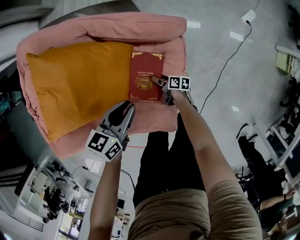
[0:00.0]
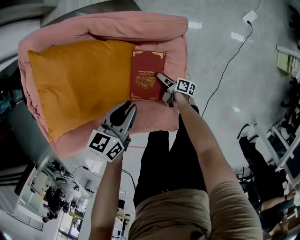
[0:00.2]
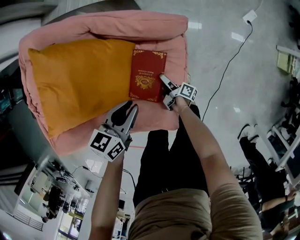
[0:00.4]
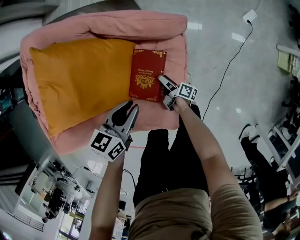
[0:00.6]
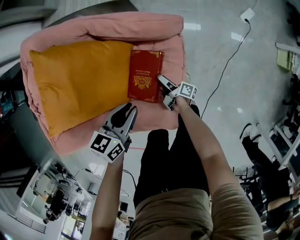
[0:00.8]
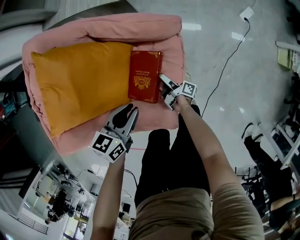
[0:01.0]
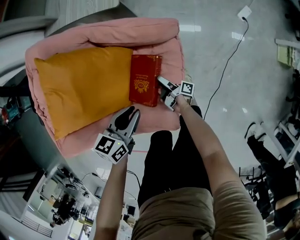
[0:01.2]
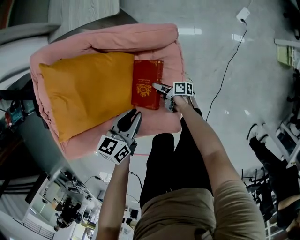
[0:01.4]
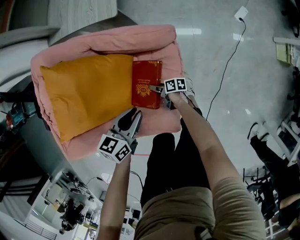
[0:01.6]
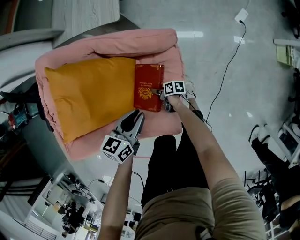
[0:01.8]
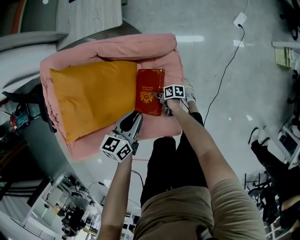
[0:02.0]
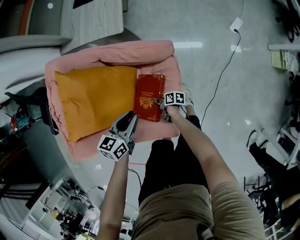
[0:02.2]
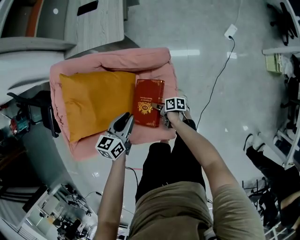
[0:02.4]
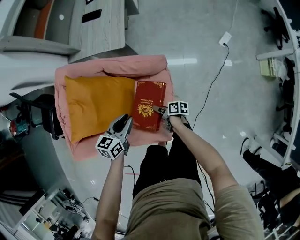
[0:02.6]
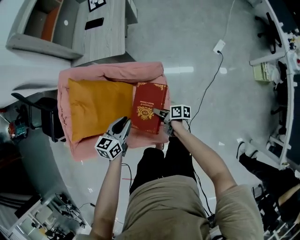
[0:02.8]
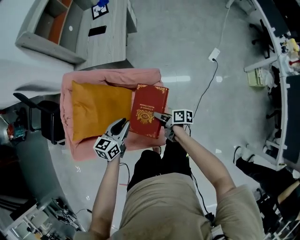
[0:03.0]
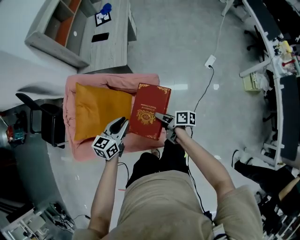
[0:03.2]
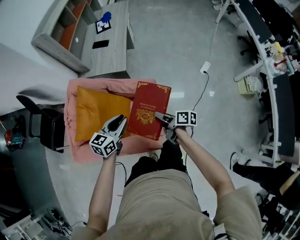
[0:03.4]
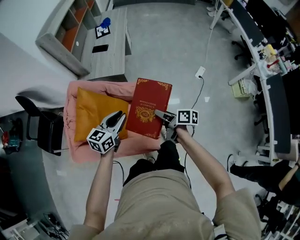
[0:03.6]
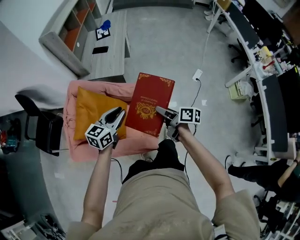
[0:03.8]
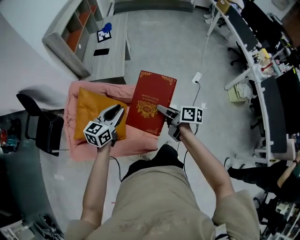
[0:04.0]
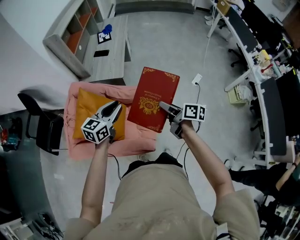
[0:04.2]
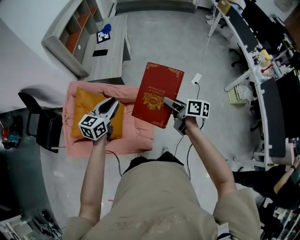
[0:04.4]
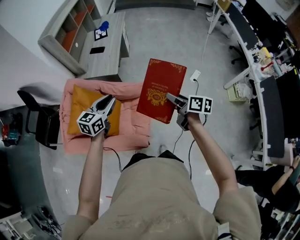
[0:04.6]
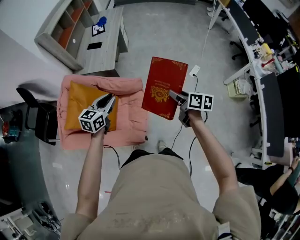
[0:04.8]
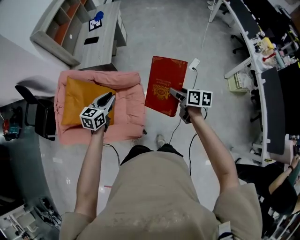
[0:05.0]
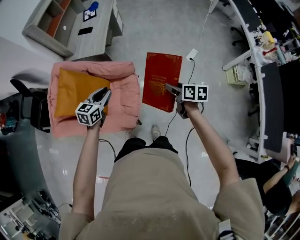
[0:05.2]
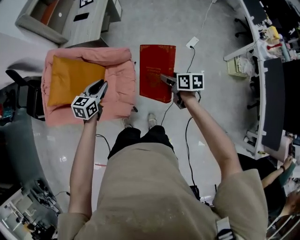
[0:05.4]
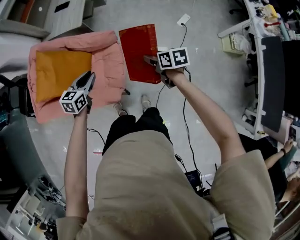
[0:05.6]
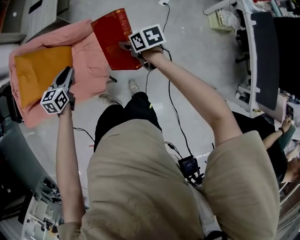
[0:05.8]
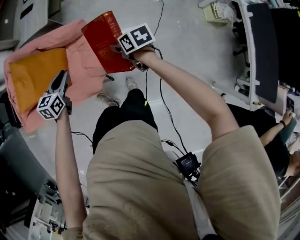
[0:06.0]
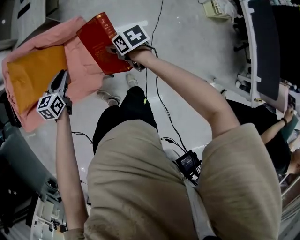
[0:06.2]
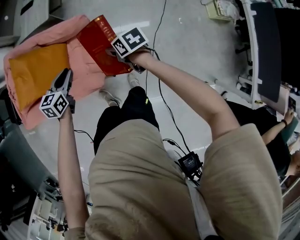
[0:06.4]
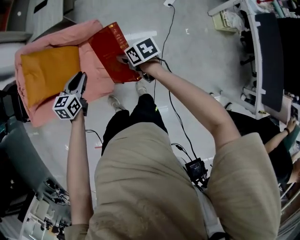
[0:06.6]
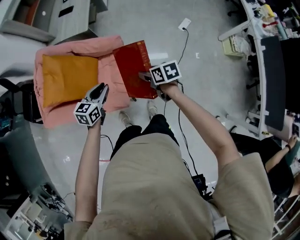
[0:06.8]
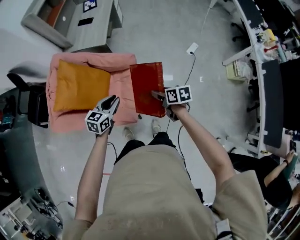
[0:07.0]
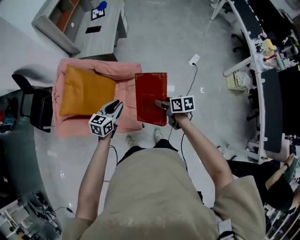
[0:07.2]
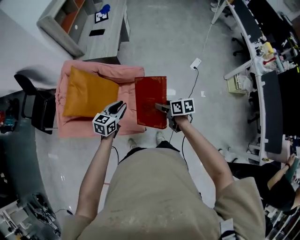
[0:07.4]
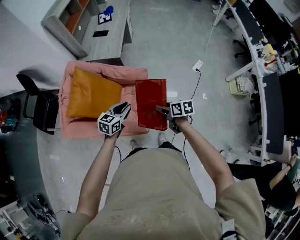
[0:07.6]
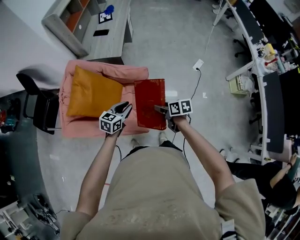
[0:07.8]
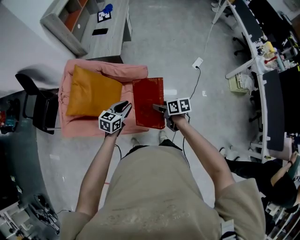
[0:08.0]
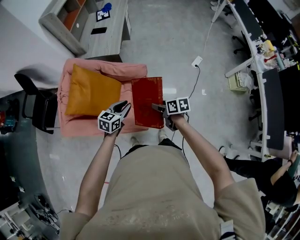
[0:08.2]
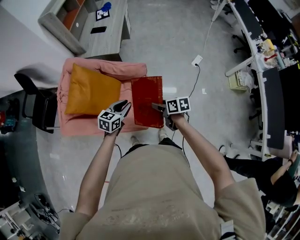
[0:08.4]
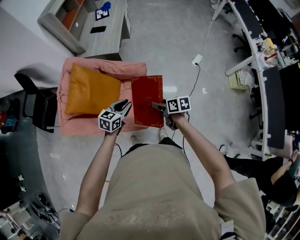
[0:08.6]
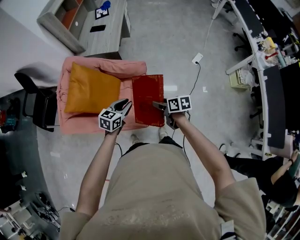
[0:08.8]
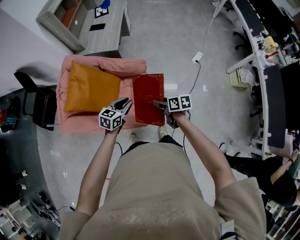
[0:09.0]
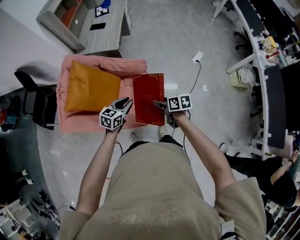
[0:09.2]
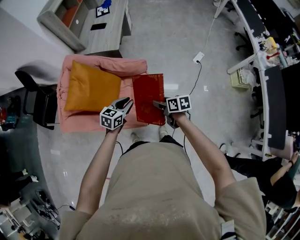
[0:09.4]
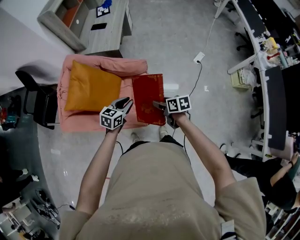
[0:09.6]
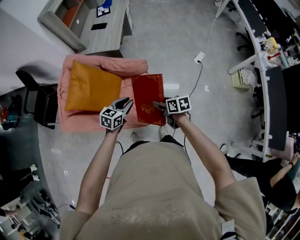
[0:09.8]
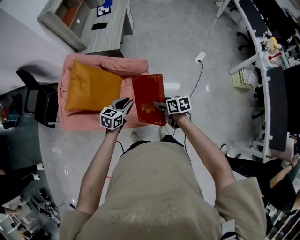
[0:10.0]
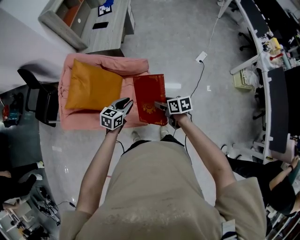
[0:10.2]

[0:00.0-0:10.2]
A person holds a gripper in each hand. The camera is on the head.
0:00.0 to 0:01.4: The right gripper heads upward, covering approximately 5 cm.
0:01.4 to 0:03.0: The left gripper is displaced upward by about 15 cm. Meanwhile the right gripper shifts about 30 cm upward.
0:03.0 to 0:04.4: The two grippers go approximately 25 cm upward. The right gripper turns by approximately 30 degrees.
0:04.4 to 0:05.8: Both grippers move downward and to the right, approximately 25 cm. The right gripper swivels some 40 degrees. Meanwhile the left gripper turns by about 20 degrees.
0:05.8 to 0:07.2: The right gripper moves to the left, about 10 cm; the left gripper travels to the left and upward by some 10 cm.
0:07.2 to 0:08.8: The right gripper moves to the left, roughly 5 cm.
0:08.8 to 0:10.2: The grippers make only small movements.

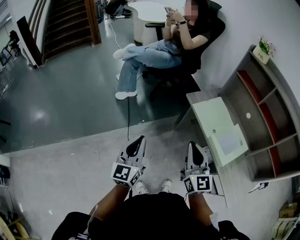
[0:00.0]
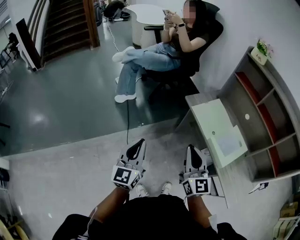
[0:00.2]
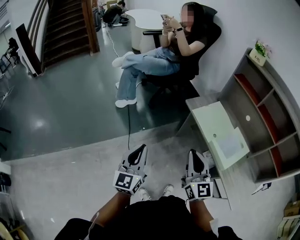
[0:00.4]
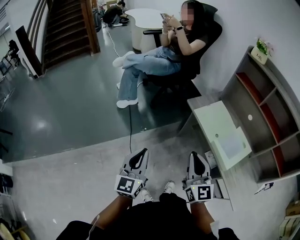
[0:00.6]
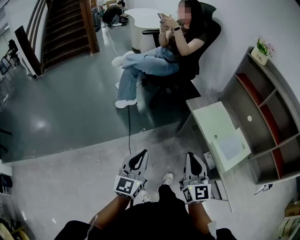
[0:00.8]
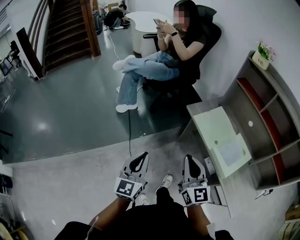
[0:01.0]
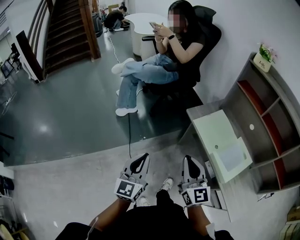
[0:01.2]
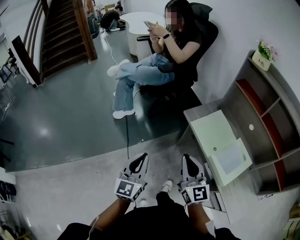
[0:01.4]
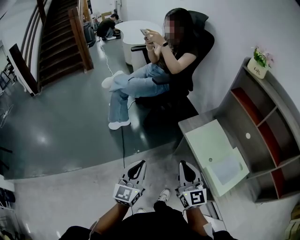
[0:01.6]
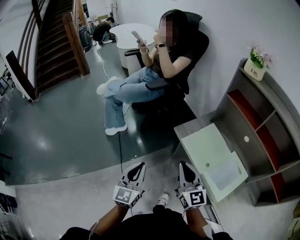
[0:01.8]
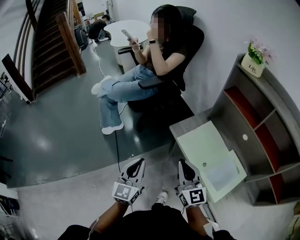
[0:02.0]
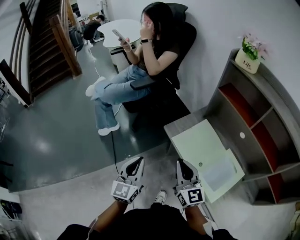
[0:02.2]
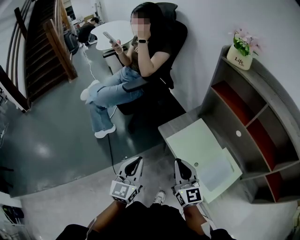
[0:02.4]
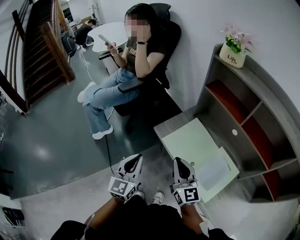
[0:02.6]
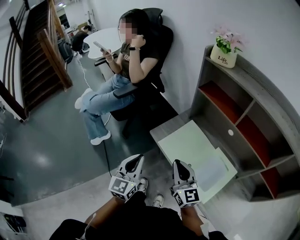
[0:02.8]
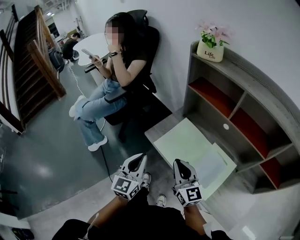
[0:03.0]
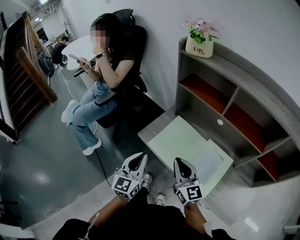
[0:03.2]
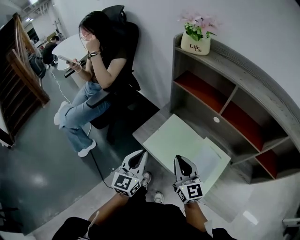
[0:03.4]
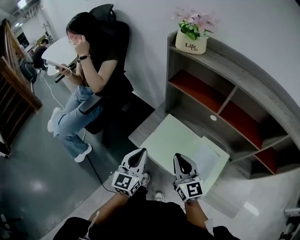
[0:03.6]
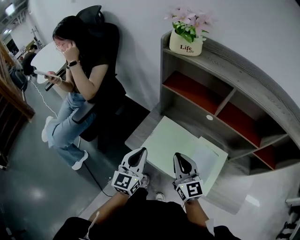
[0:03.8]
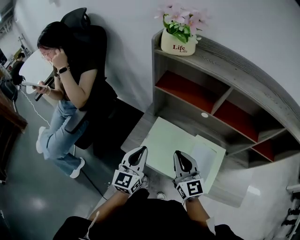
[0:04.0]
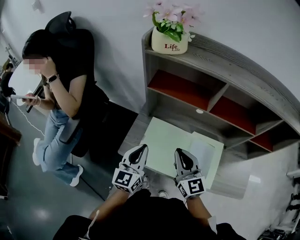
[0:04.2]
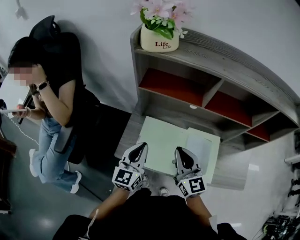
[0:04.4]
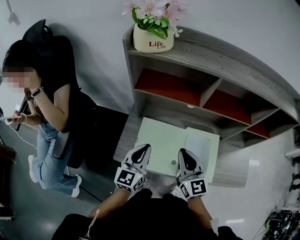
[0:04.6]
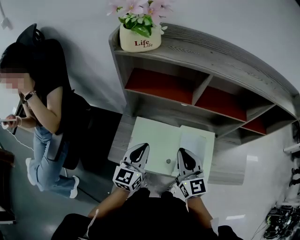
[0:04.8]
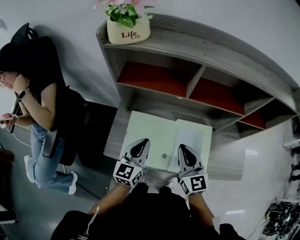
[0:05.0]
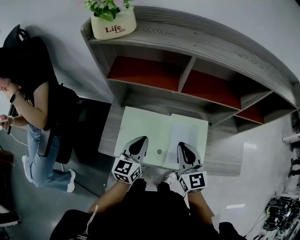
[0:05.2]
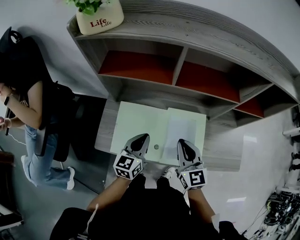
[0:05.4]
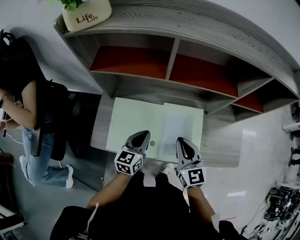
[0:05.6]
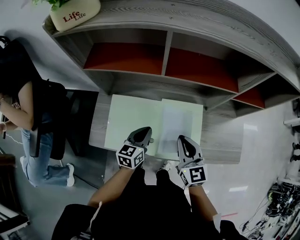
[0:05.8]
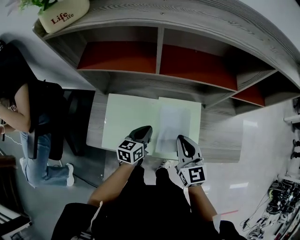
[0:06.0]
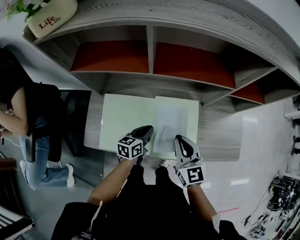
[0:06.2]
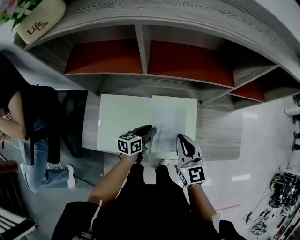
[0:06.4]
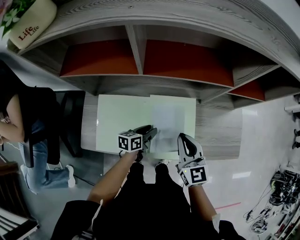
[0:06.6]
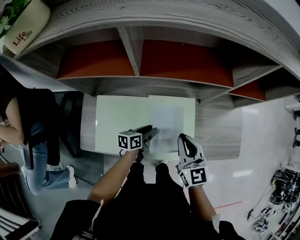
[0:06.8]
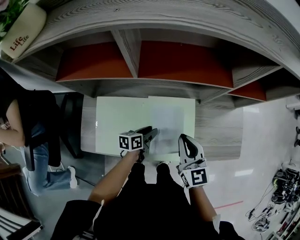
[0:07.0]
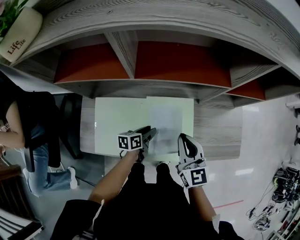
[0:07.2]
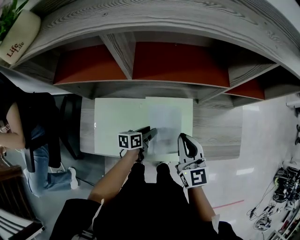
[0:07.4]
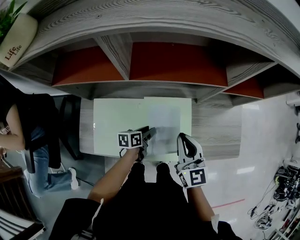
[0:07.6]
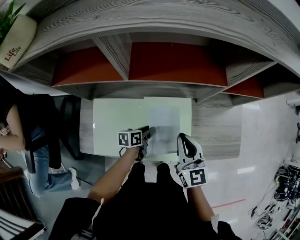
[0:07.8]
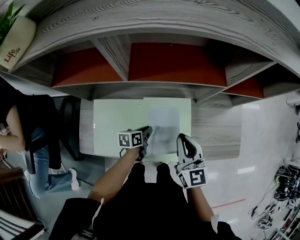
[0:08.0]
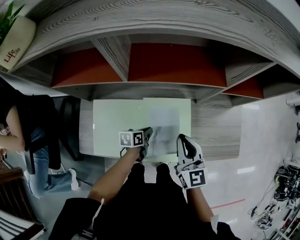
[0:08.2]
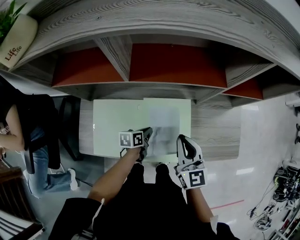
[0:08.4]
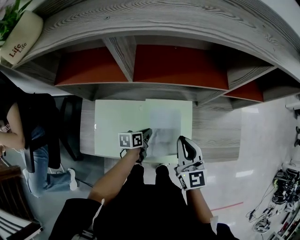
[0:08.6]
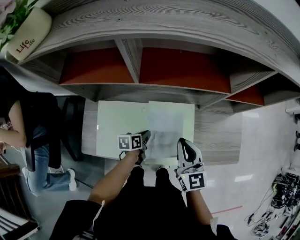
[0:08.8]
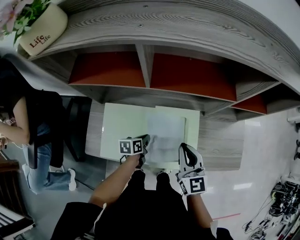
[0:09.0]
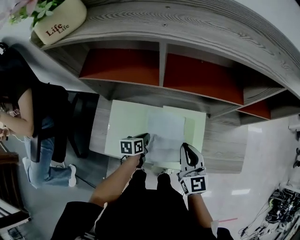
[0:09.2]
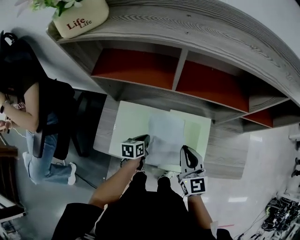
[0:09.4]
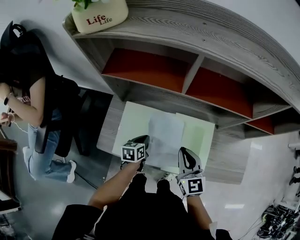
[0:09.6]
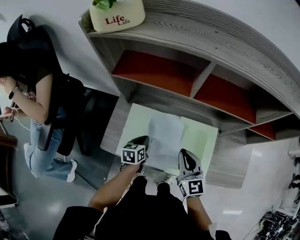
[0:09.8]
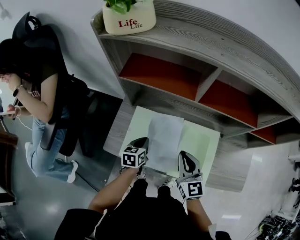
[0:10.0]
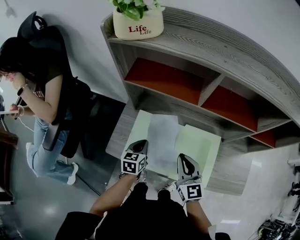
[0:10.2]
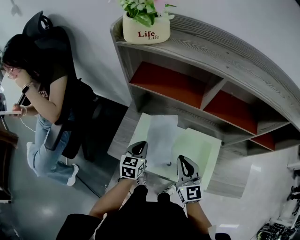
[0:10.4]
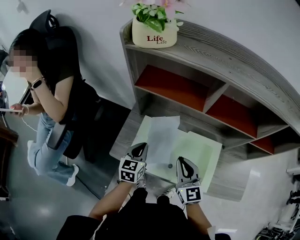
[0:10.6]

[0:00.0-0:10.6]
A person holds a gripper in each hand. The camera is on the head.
0:00.0 to 0:01.6: The right gripper goes roughly 15 cm forward. Meanwhile the left gripper heads forward and to the right, covering roughly 15 cm.
0:01.6 to 0:03.0: The grippers both shift to the right and forward by roughly 25 cm.
0:03.0 to 0:04.6: The right gripper moves roughly 15 cm, and changes its angle by approximately 40 degrees; the left gripper shifts by approximately 25 cm, and changes its angle by some 40 degrees.
0:04.6 to 0:06.0: The right gripper is displaced to the right and downward by approximately 20 cm. Meanwhile the left gripper goes roughly 25 cm downward and to the right, and changes its angle by some 30 degrees.
0:06.0 to 0:07.6: The left gripper goes approximately 10 cm downward and to the right, changes its angle by approximately 30 degrees, and opens. The right gripper goes some 5 cm to the right.
0:07.6 to 0:09.0: The left gripper moves to the left, roughly 5 cm, and closes its fingers.
0:09.0 to 0:10.6: The left gripper is displaced upward by approximately 20 cm, and swivels about 40 degrees. The right gripper moves approximately 15 cm.

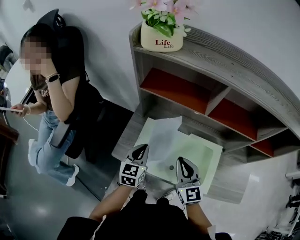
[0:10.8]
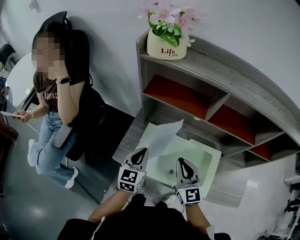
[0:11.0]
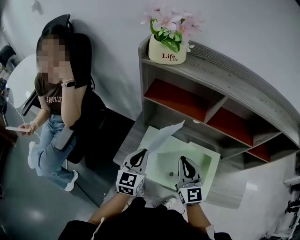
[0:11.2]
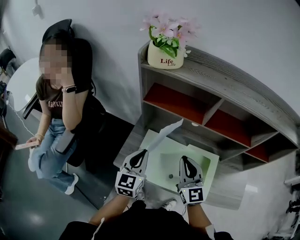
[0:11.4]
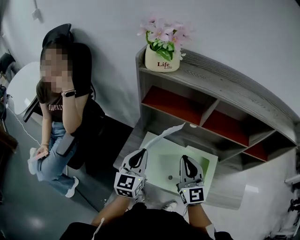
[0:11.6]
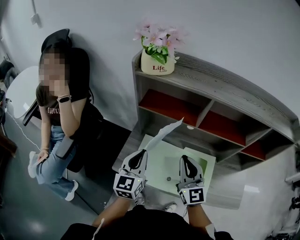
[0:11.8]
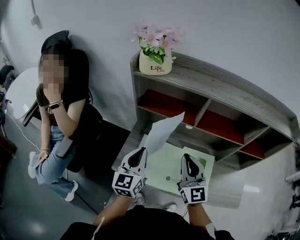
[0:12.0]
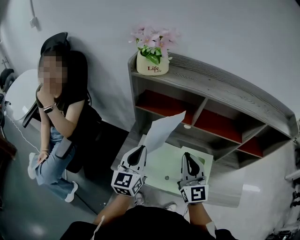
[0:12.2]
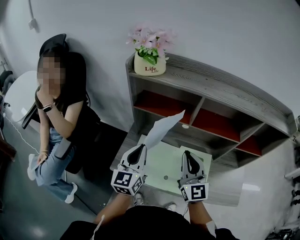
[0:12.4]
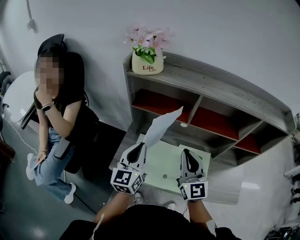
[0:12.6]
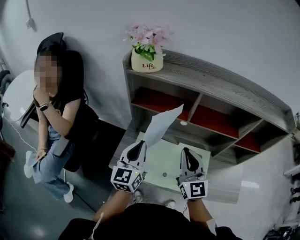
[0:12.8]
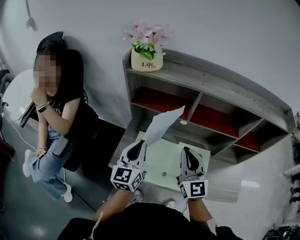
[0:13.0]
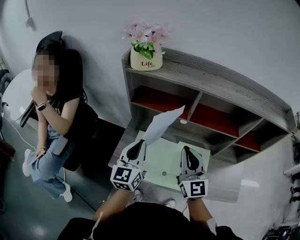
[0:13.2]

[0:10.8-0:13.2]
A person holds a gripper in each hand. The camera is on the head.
0:10.8 to 0:12.0: The grippers both shift upward by approximately 15 cm.
0:12.0 to 0:13.2: The grippers make only small movements.
